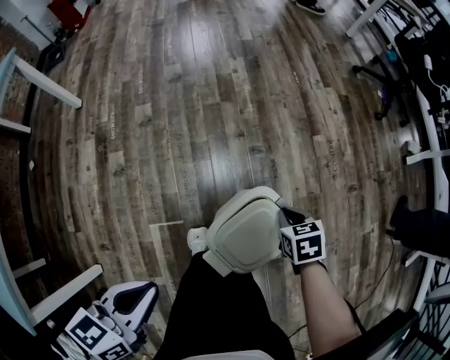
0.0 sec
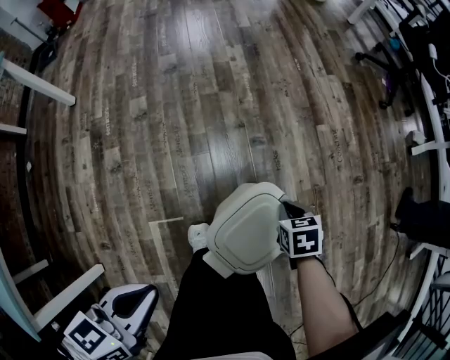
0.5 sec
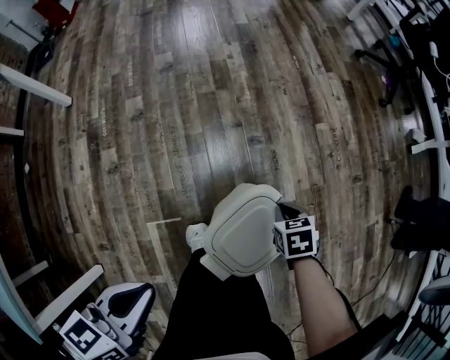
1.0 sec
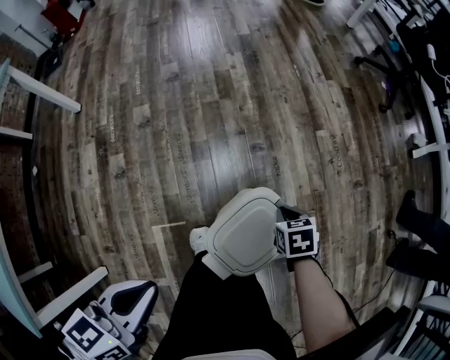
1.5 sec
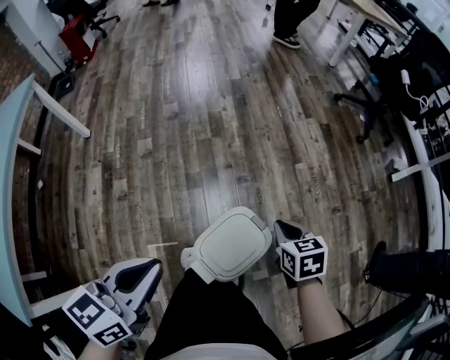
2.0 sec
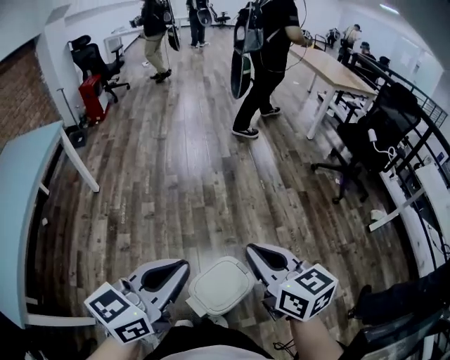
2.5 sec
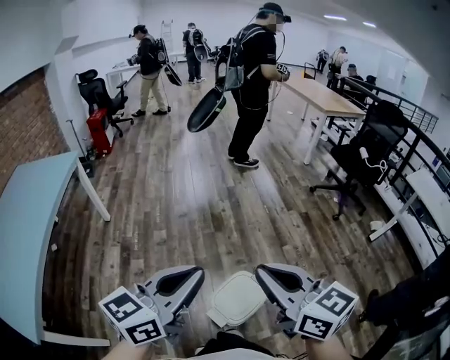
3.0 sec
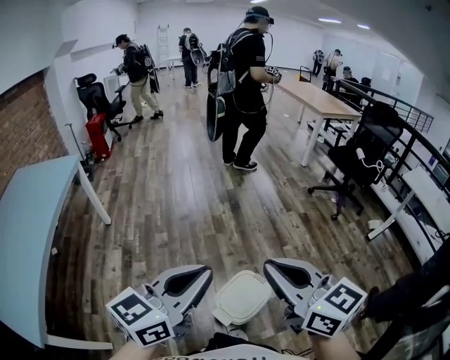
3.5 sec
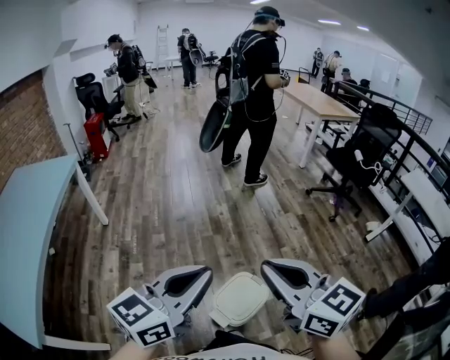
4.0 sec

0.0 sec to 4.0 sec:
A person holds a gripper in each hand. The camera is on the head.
0.0 sec to 2.0 sec: The right gripper shifts roughly 15 cm upward; the left gripper travels upward, forward and to the right by approximately 15 cm.
2.0 sec to 4.0 sec: The right gripper is displaced upward by roughly 40 cm, and angles its fingers upward, by roughly 40 degrees, while the left gripper is displaced upward by about 25 cm, and swivels roughly 30 degrees.

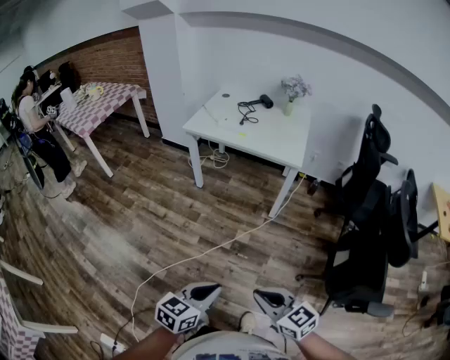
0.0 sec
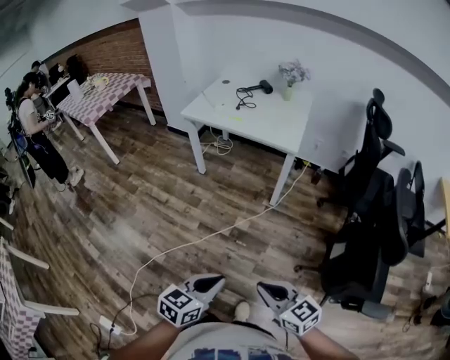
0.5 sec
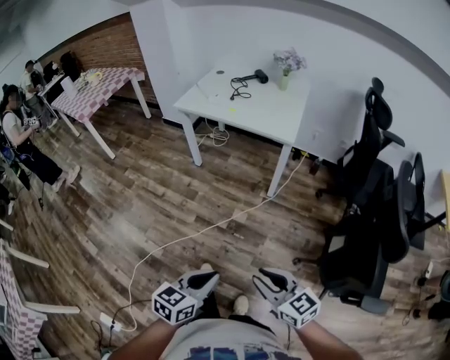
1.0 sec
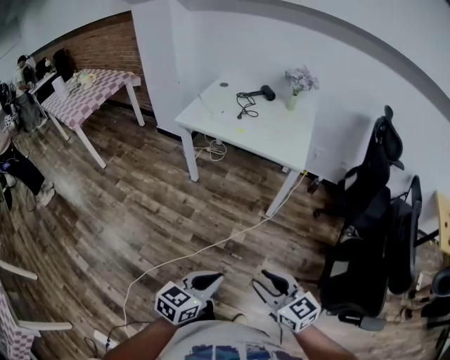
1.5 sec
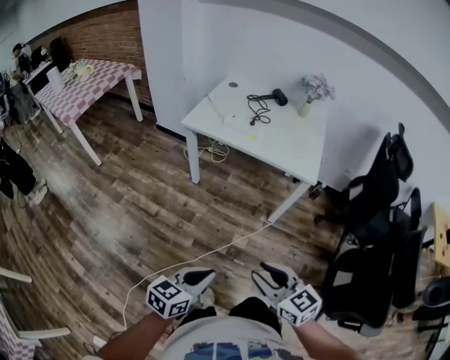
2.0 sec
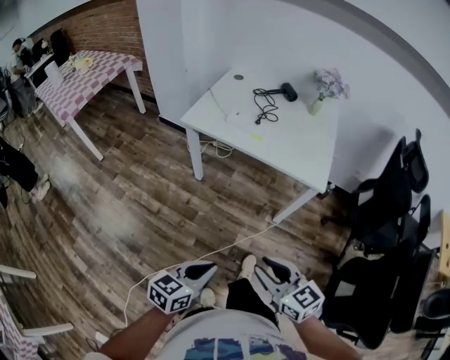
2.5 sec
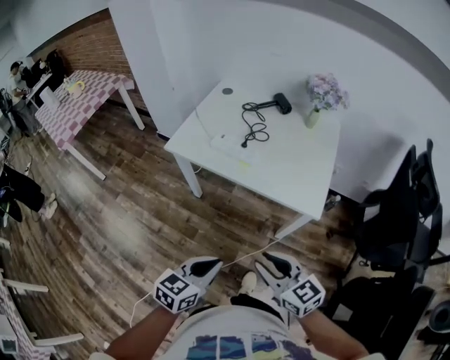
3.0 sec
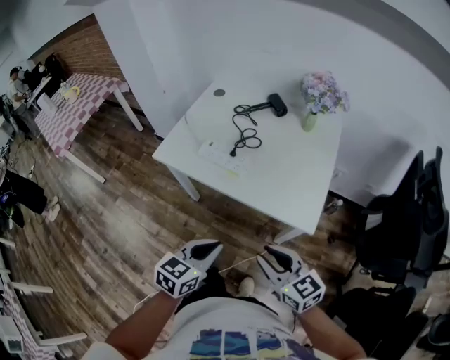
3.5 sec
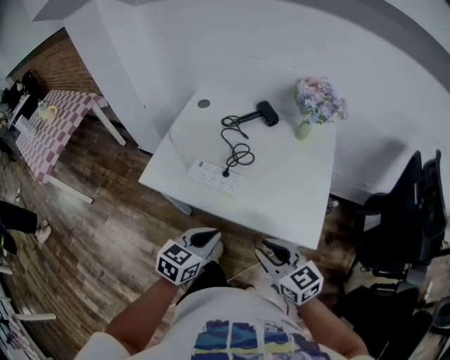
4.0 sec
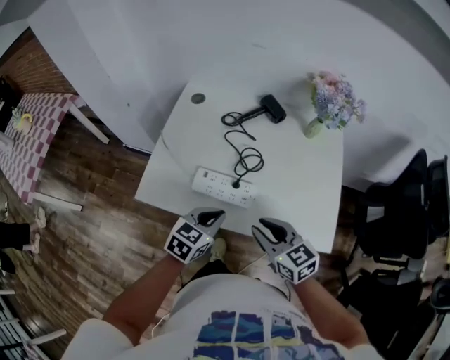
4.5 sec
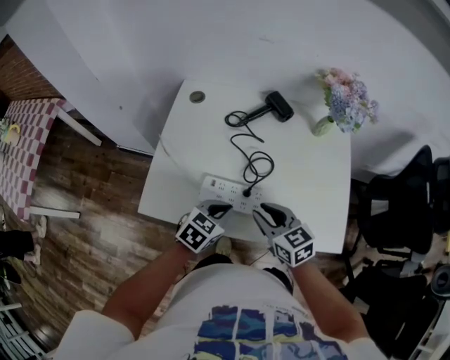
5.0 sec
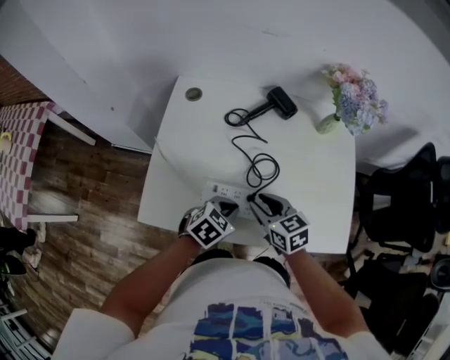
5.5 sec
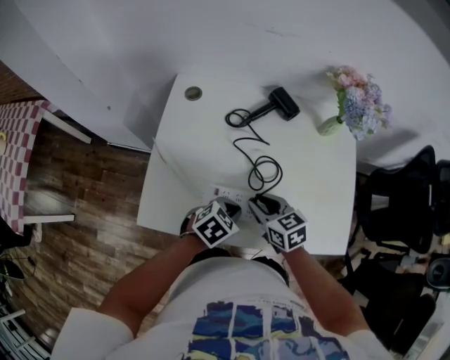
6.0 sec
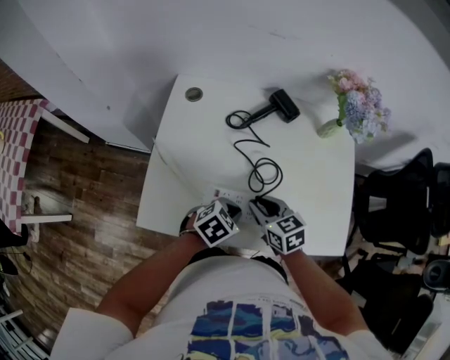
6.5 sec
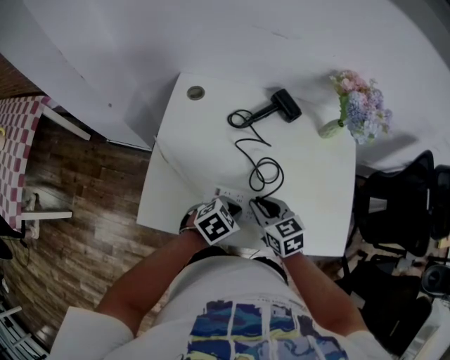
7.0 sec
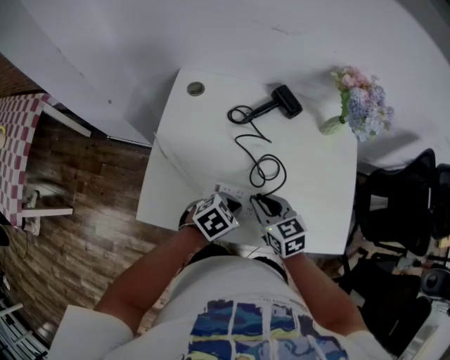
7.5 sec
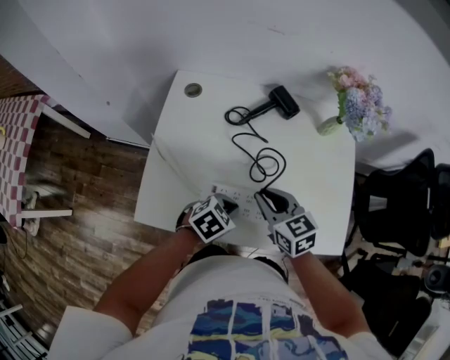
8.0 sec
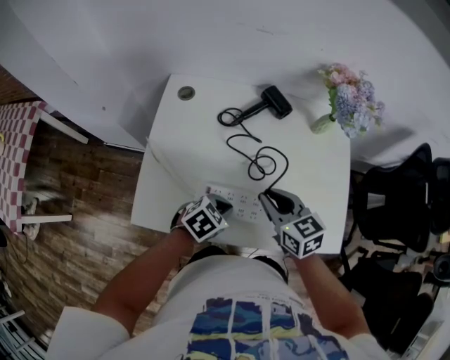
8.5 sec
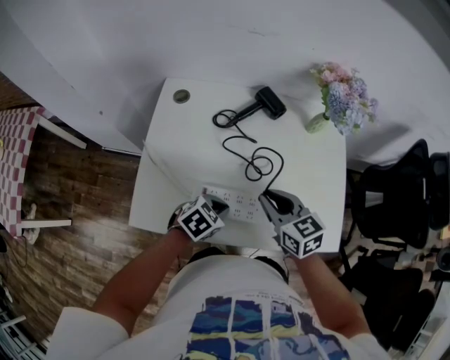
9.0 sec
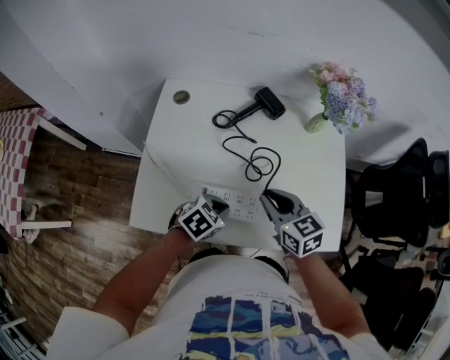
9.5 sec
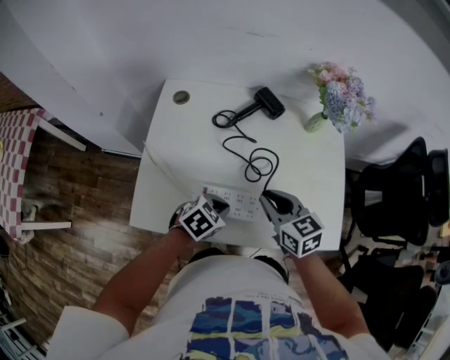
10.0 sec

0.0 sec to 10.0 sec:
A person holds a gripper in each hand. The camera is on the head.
0.0 sec to 2.0 sec: Both grippers travel together forward, approximately 25 cm. The right gripper opens up.
2.0 sec to 4.0 sec: The pair of grippers is taken forward, about 50 cm.
4.0 sec to 6.0 sec: The left gripper shifts some 30 cm forward, downward and to the left, and rotates roughly 40 degrees, while the right gripper is displaced forward, to the left and downward by approximately 35 cm, and rotates about 20 degrees.
6.0 sec to 8.0 sec: The right gripper moves upward, some 5 cm.
8.0 sec to 10.0 sec: The grippers stay close to where they were, moving slightly.

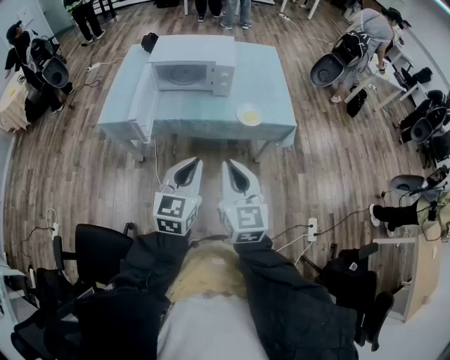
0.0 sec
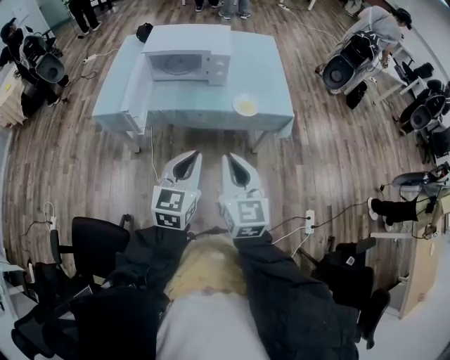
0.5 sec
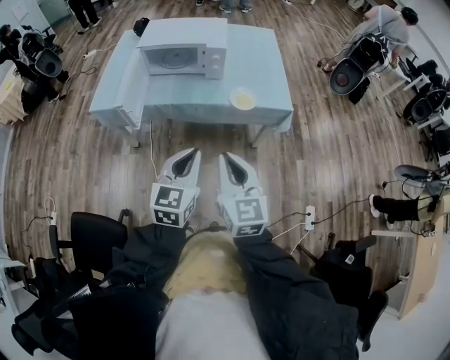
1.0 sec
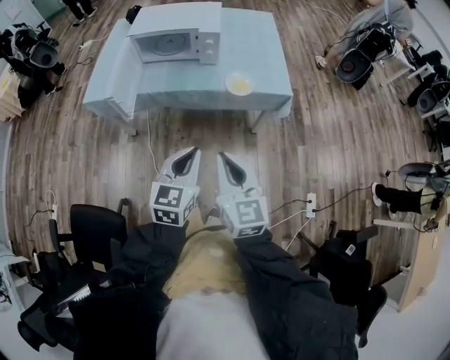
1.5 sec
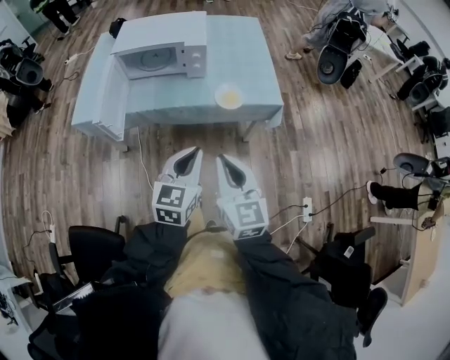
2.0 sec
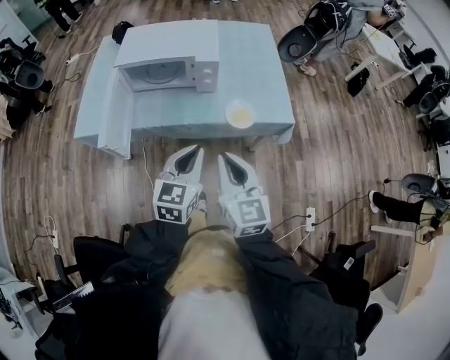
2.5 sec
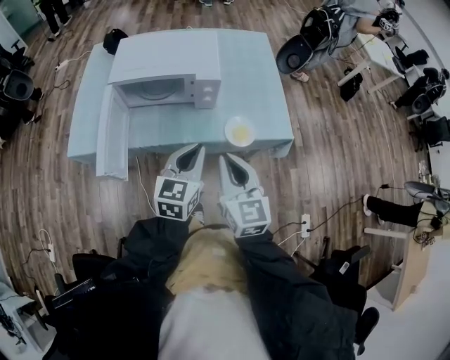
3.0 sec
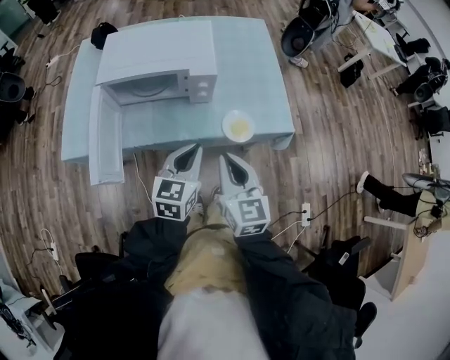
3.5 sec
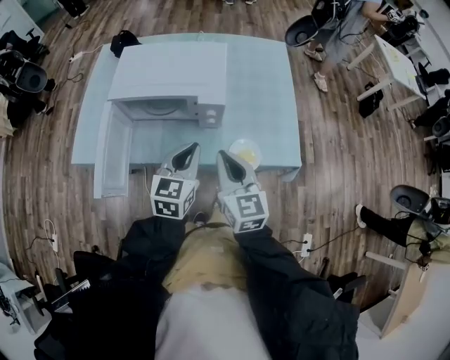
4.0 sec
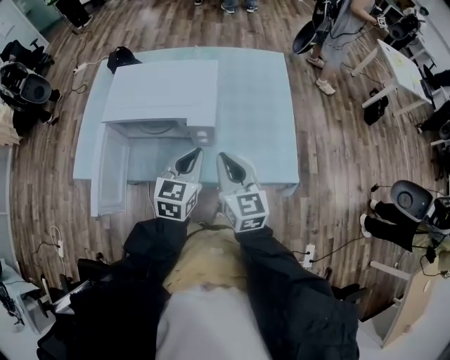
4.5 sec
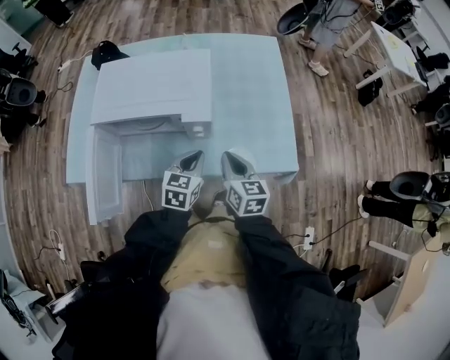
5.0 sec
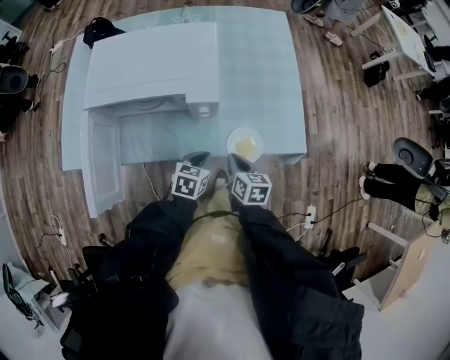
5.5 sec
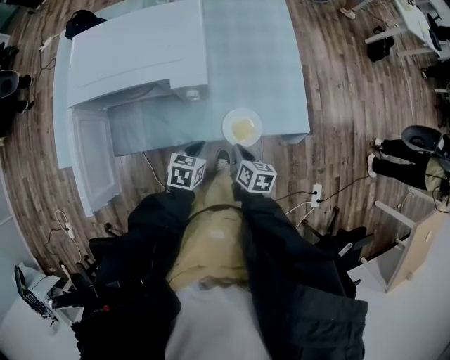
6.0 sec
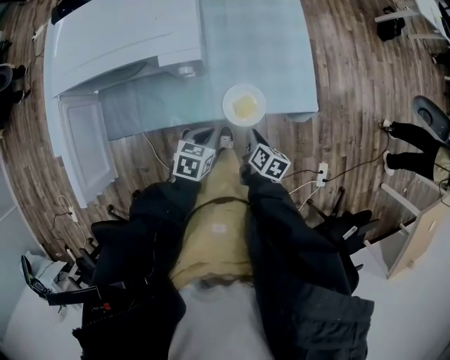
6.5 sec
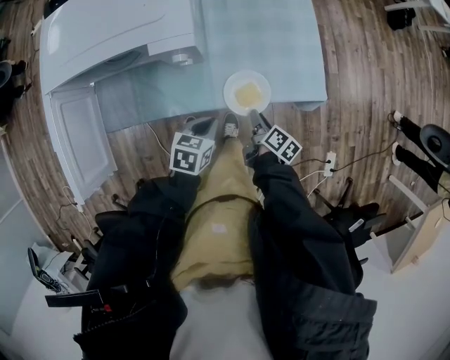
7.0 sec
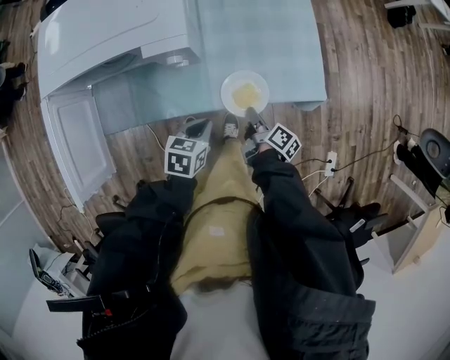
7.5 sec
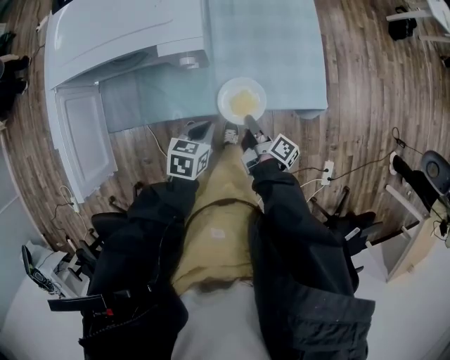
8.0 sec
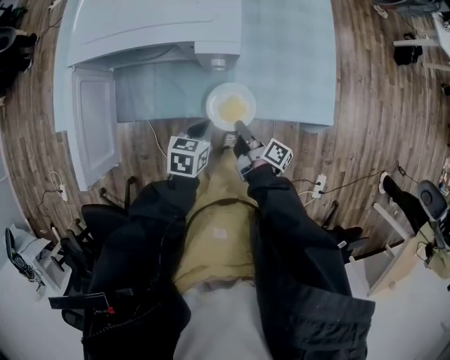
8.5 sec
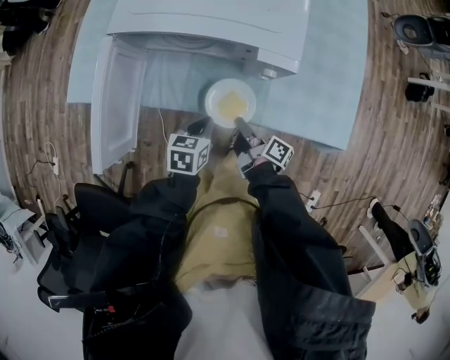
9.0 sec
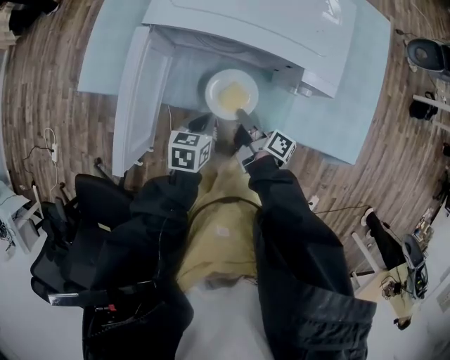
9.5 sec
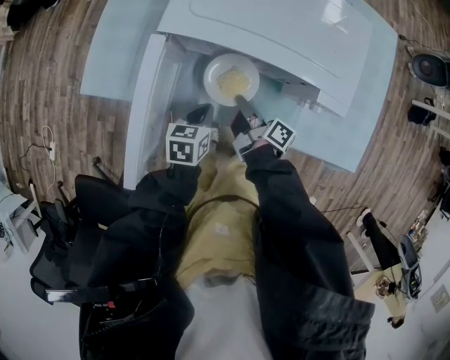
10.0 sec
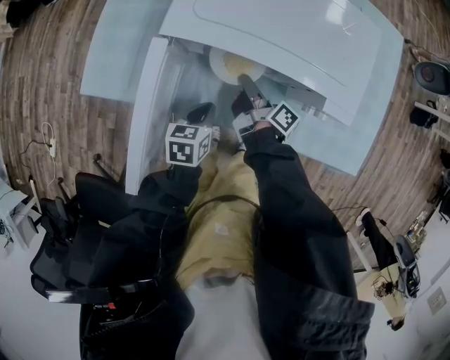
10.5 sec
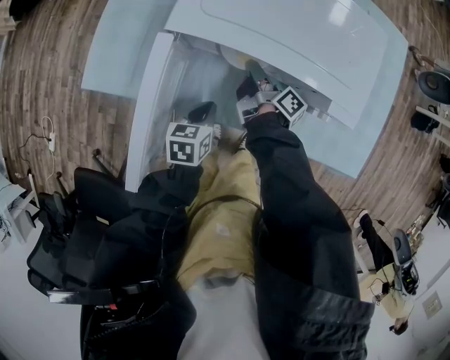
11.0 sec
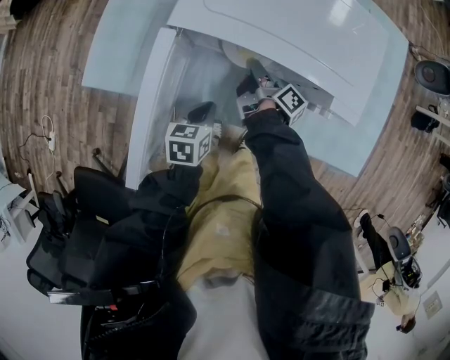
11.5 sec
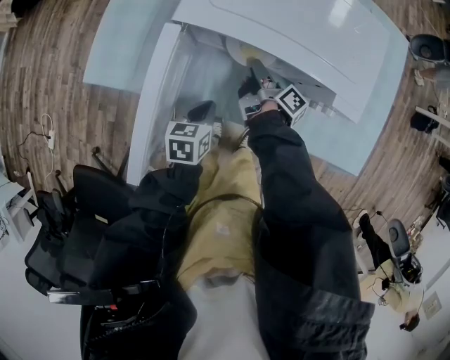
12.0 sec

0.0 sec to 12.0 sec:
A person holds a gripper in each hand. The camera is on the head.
0.0 sec to 2.0 sec: The left gripper is displaced to the right, forward and downward by roughly 15 cm. The right gripper shifts roughly 10 cm to the right and forward.
2.0 sec to 4.0 sec: Both grippers travel together forward, some 30 cm.
4.0 sec to 6.0 sec: The grippers both shift downward by some 25 cm. The left gripper turns by about 40 degrees. Meanwhile the right gripper tips its fingers downward by some 30 degrees.
6.0 sec to 8.0 sec: The right gripper moves downward, about 5 cm, rolls clockwise, seen from behind, by approximately 40 degrees, and opens, then closes once more.
8.0 sec to 10.0 sec: The left gripper moves some 30 cm, and turns by approximately 30 degrees, while the right gripper moves about 35 cm, and changes its angle by roughly 20 degrees.
10.0 sec to 12.0 sec: The right gripper heads forward, covering some 10 cm.

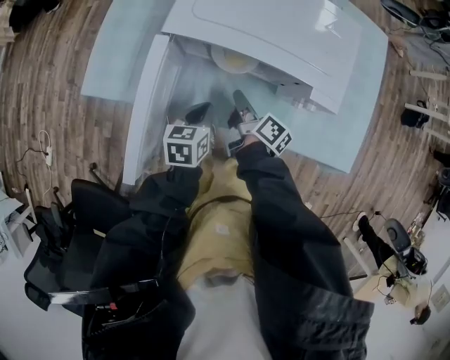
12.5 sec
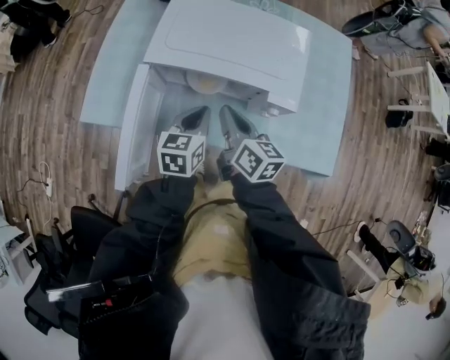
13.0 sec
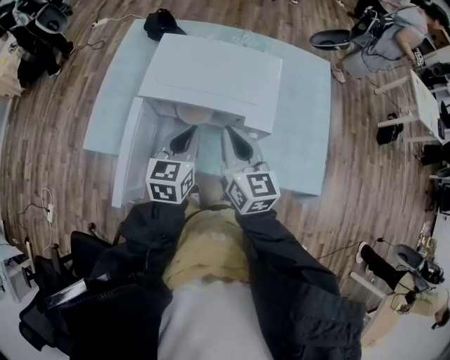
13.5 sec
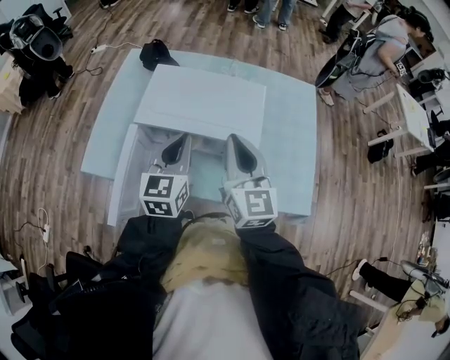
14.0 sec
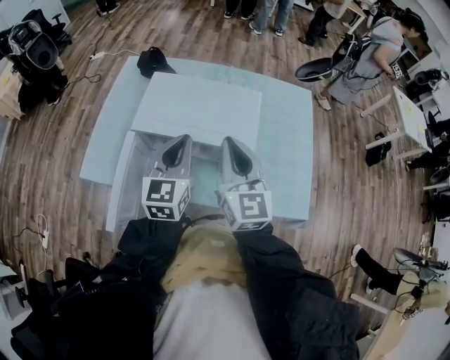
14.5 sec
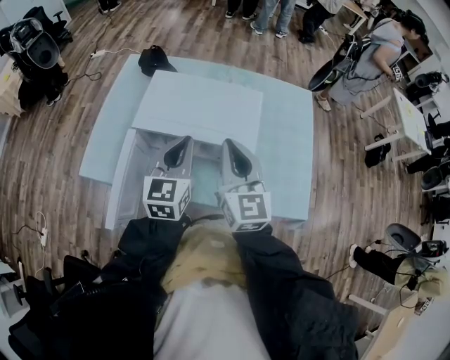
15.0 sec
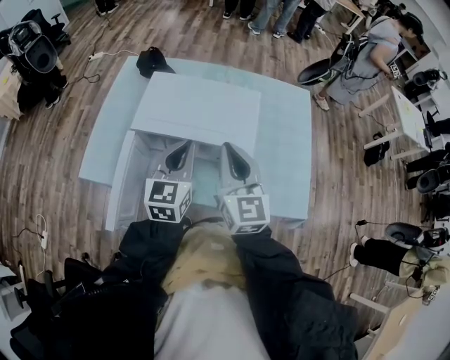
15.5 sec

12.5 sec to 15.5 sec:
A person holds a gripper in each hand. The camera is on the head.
12.5 sec to 14.0 sec: The two grippers go approximately 30 cm upward. The right gripper twists approximately 70 degrees counterclockwise, seen from behind, while the left gripper swivels approximately 40 degrees.
14.0 sec to 15.5 sec: The grippers make only small movements.
